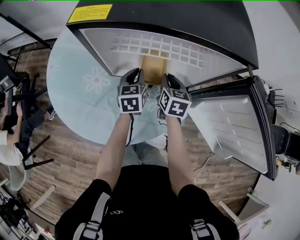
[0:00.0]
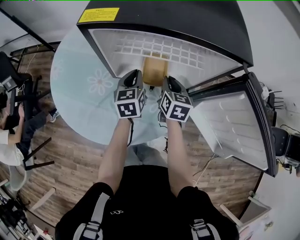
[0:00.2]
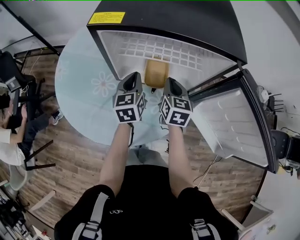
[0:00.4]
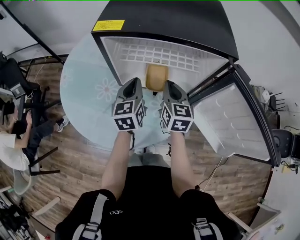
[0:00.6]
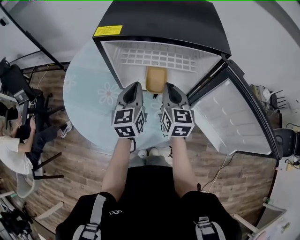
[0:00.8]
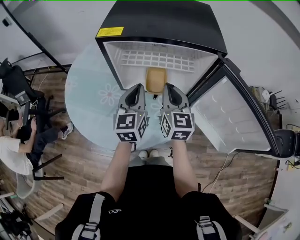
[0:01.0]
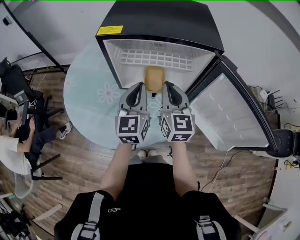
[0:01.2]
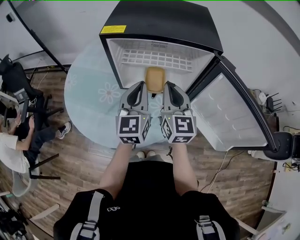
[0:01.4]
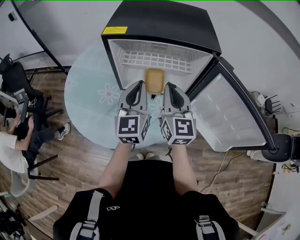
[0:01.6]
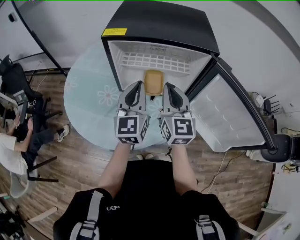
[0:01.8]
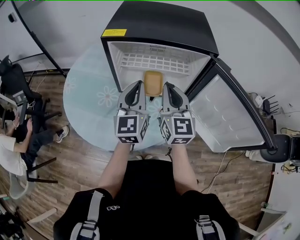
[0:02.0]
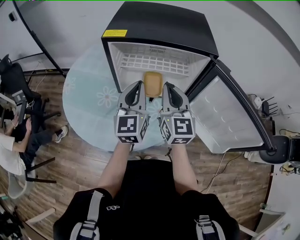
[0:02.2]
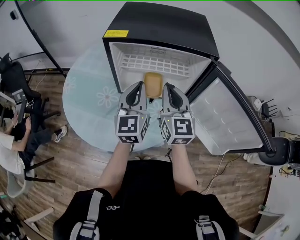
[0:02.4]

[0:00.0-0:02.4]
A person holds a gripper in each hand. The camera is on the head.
0:00.0 to 0:01.2: The grippers both shift upward and backward by about 25 cm. The left gripper turns by some 30 degrees. The right gripper tips its fingers upward by approximately 30 degrees.
0:01.2 to 0:02.4: The grippers move only a little.

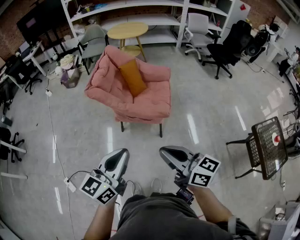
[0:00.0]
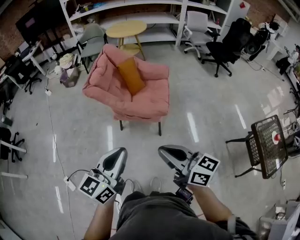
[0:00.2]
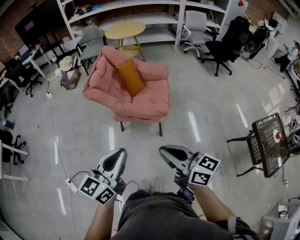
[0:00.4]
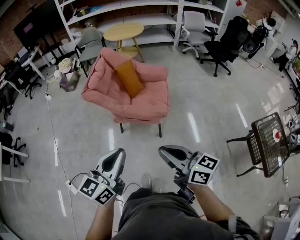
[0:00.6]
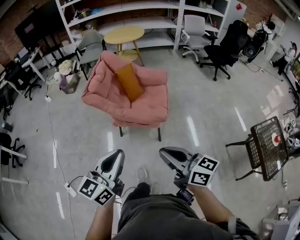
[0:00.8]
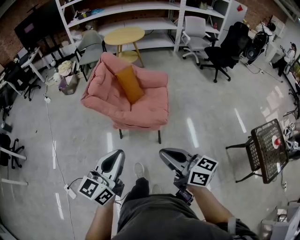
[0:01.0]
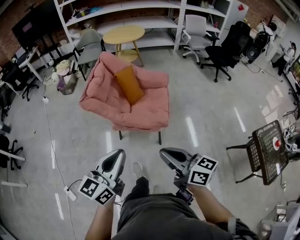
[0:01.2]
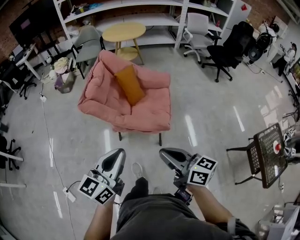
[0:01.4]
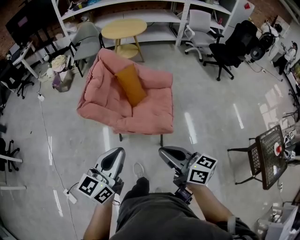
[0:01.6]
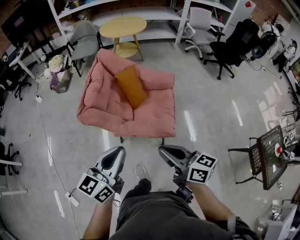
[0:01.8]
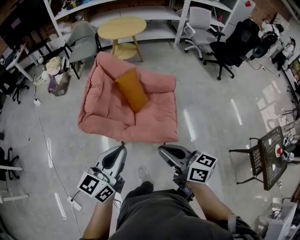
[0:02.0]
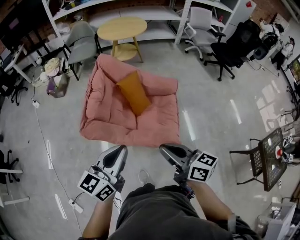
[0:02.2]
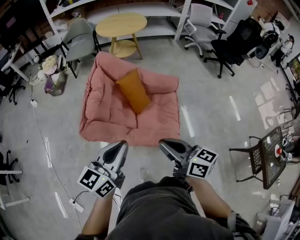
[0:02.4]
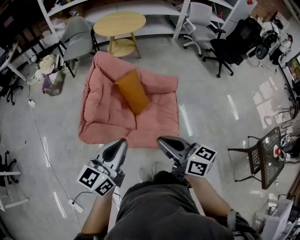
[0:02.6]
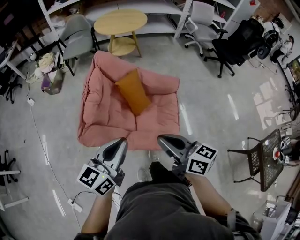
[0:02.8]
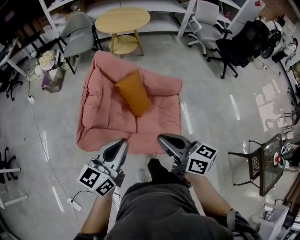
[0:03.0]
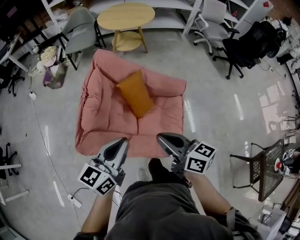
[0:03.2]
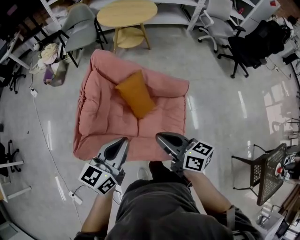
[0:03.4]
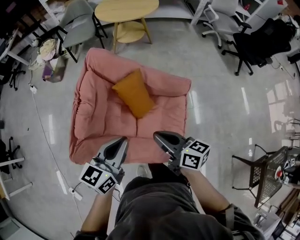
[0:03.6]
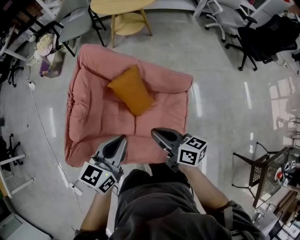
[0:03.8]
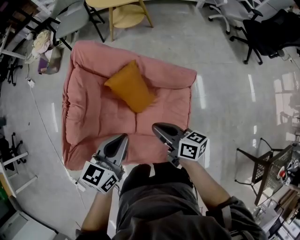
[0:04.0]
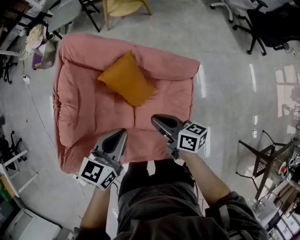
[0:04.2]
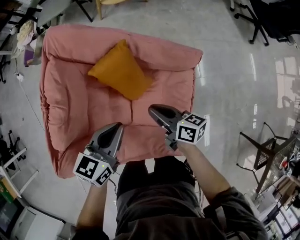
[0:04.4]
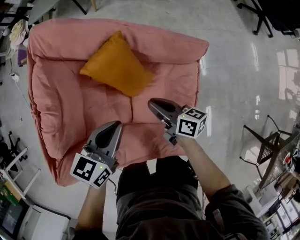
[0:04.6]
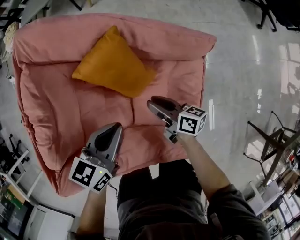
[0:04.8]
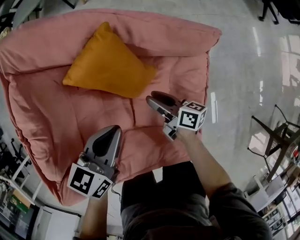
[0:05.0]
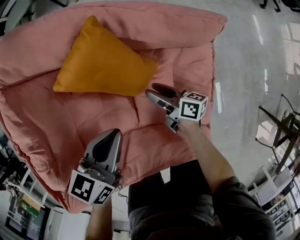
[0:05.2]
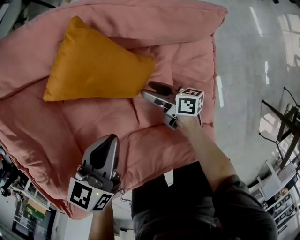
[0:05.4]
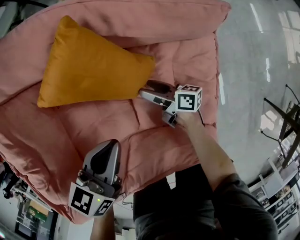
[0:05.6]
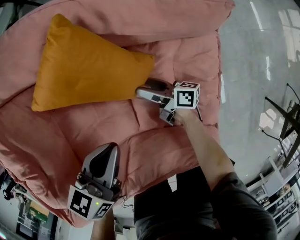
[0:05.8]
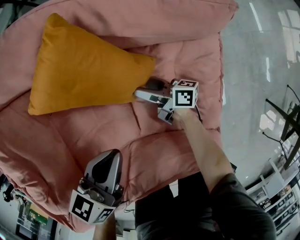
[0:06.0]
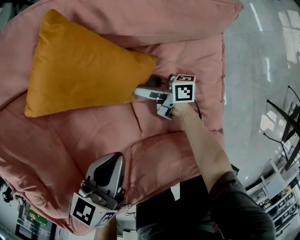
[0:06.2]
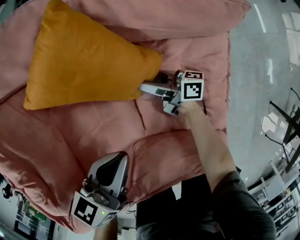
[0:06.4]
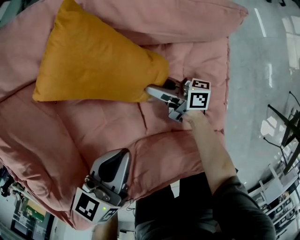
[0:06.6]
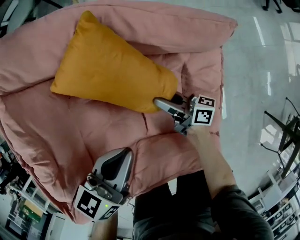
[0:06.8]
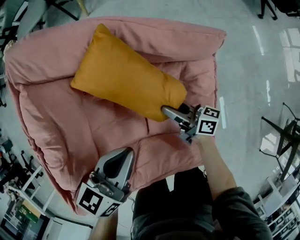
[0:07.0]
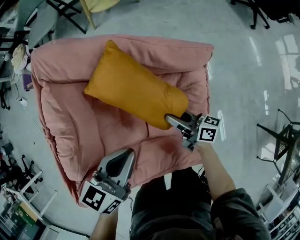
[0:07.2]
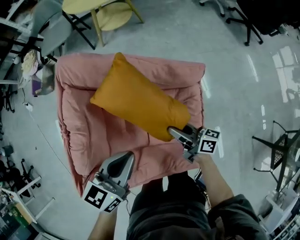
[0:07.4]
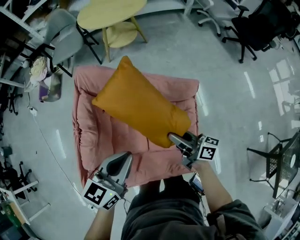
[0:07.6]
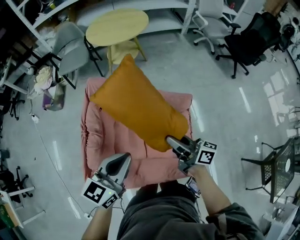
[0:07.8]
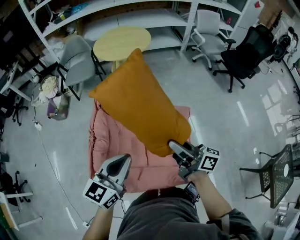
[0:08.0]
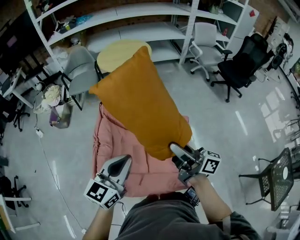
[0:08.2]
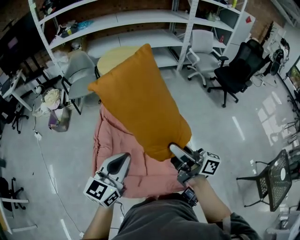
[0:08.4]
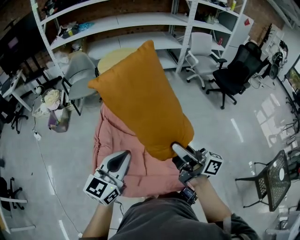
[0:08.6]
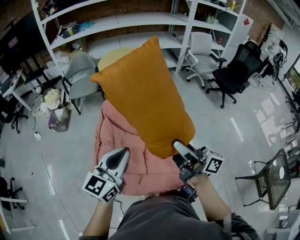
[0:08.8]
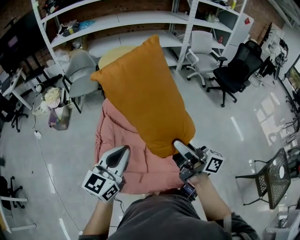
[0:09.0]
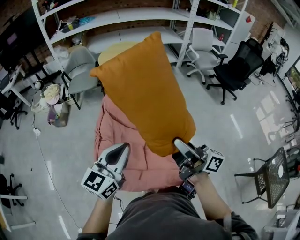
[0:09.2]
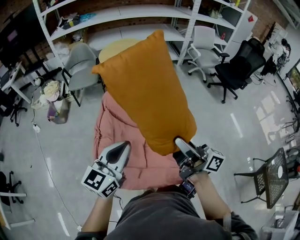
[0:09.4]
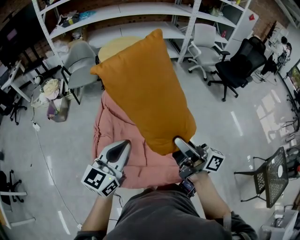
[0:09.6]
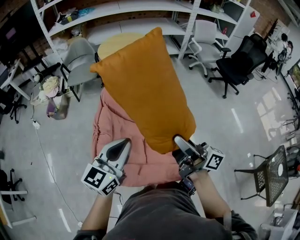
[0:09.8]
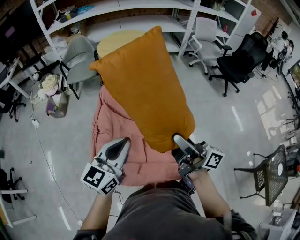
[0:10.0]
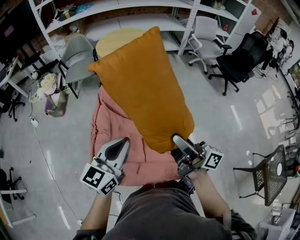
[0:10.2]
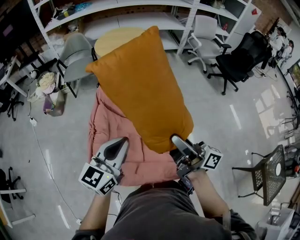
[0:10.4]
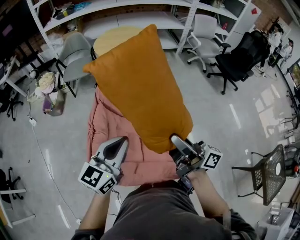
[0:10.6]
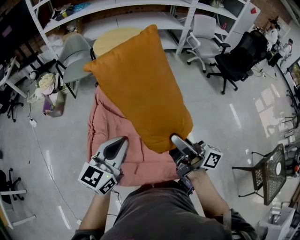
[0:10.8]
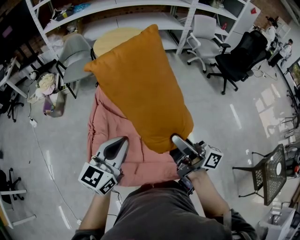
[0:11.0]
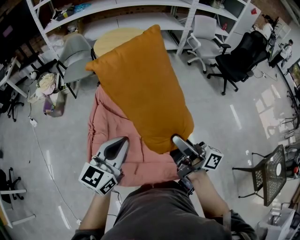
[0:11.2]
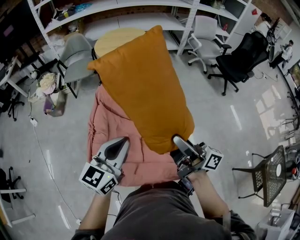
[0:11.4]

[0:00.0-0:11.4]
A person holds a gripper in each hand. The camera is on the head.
0:00.0 to 0:01.4: Both grippers travel together forward, some 15 cm.
0:01.4 to 0:02.8: Both grippers move forward, about 30 cm.
0:02.8 to 0:04.2: The left gripper goes some 30 cm forward, downward and to the right, and swivels some 20 degrees; the right gripper goes about 35 cm downward and forward, and rotates about 20 degrees.
0:04.2 to 0:05.6: The left gripper shifts approximately 20 cm downward, while the right gripper moves downward, about 35 cm, swivels about 20 degrees, and opens its fingers.
0:05.6 to 0:07.2: Both grippers move upward, some 15 cm. The right gripper closes up.
0:07.2 to 0:08.6: The left gripper is displaced upward by approximately 30 cm, and changes its angle by roughly 30 degrees. Meanwhile the right gripper moves upward, approximately 50 cm, and swivels approximately 30 degrees.
0:08.6 to 0:11.4: The grippers move only a little.

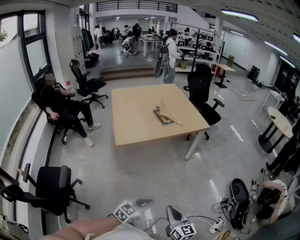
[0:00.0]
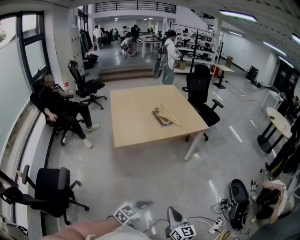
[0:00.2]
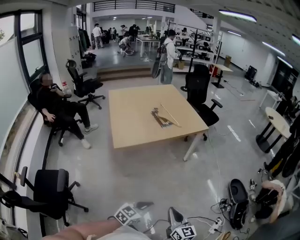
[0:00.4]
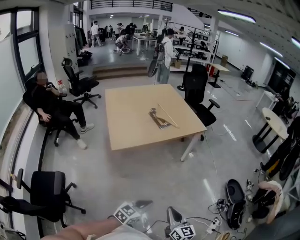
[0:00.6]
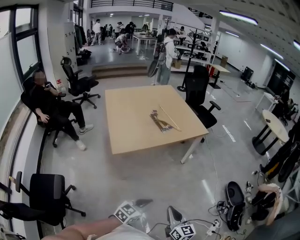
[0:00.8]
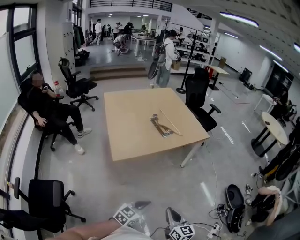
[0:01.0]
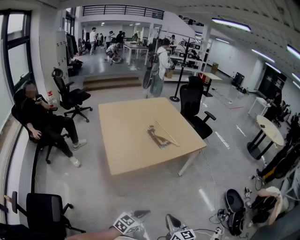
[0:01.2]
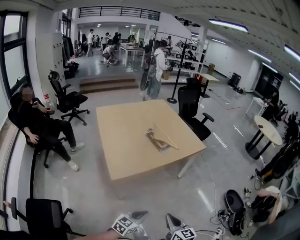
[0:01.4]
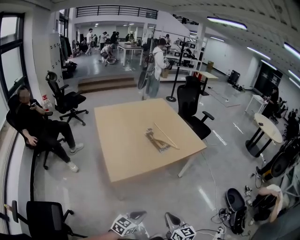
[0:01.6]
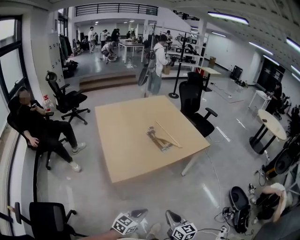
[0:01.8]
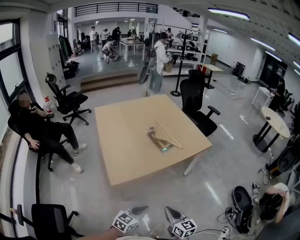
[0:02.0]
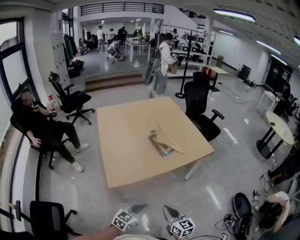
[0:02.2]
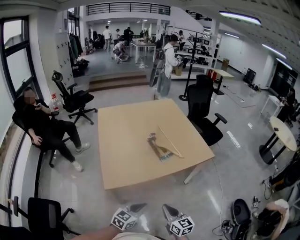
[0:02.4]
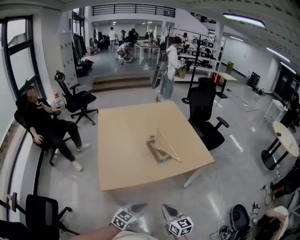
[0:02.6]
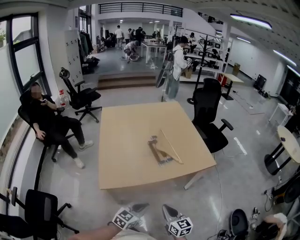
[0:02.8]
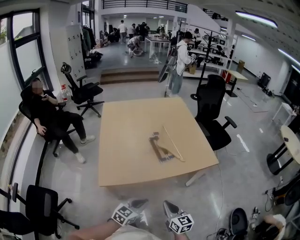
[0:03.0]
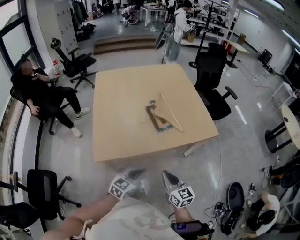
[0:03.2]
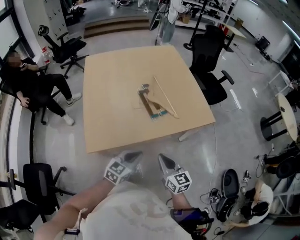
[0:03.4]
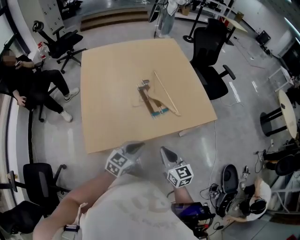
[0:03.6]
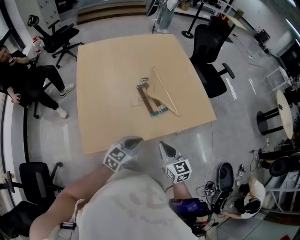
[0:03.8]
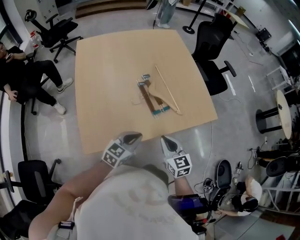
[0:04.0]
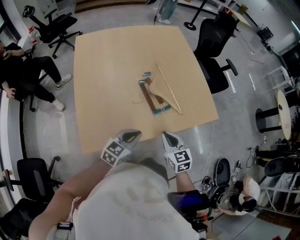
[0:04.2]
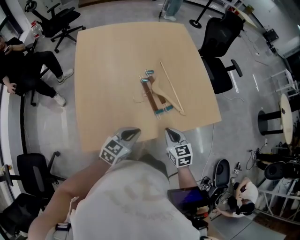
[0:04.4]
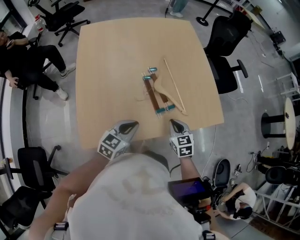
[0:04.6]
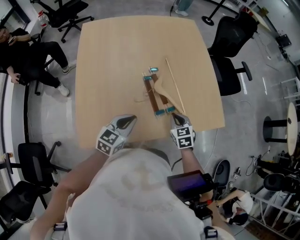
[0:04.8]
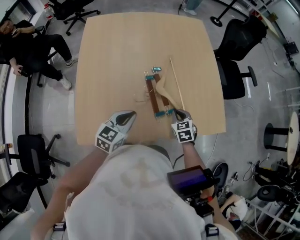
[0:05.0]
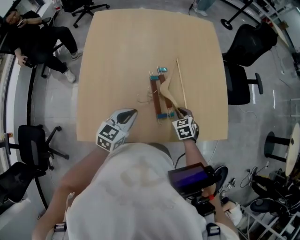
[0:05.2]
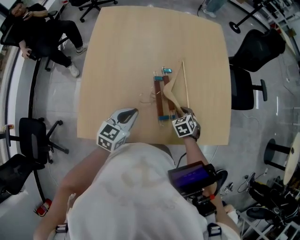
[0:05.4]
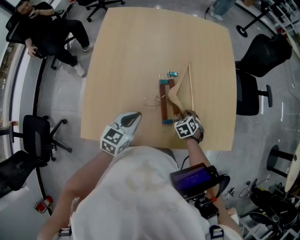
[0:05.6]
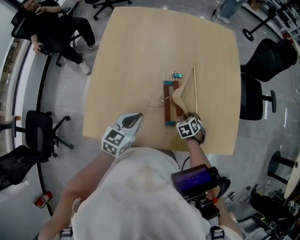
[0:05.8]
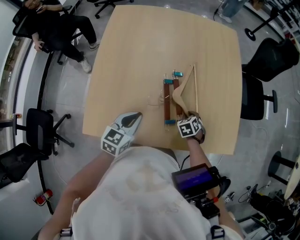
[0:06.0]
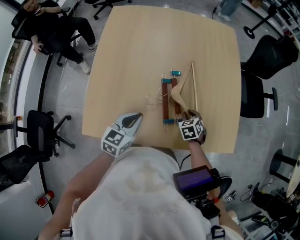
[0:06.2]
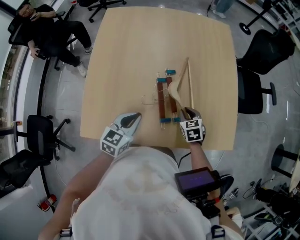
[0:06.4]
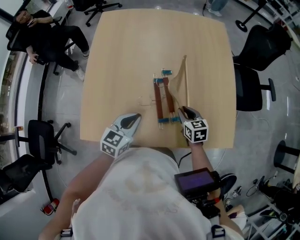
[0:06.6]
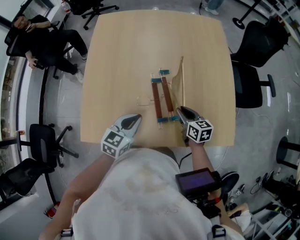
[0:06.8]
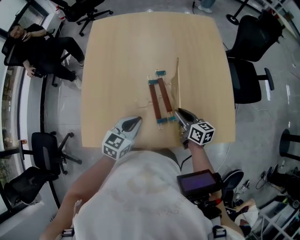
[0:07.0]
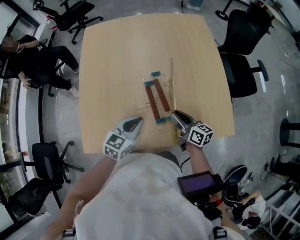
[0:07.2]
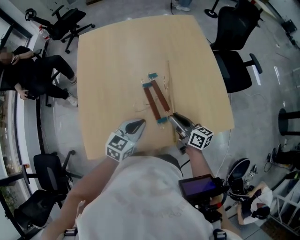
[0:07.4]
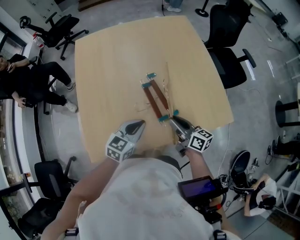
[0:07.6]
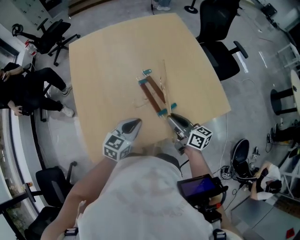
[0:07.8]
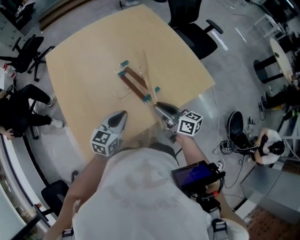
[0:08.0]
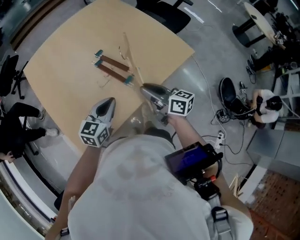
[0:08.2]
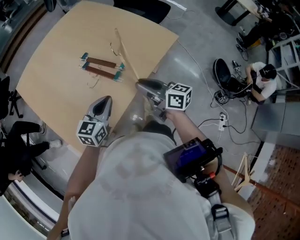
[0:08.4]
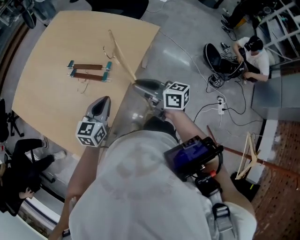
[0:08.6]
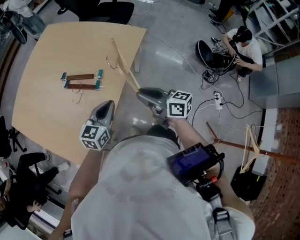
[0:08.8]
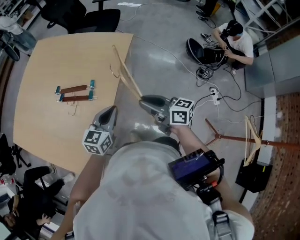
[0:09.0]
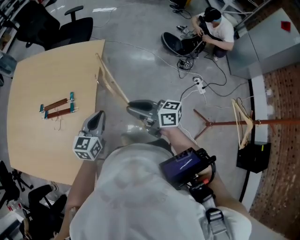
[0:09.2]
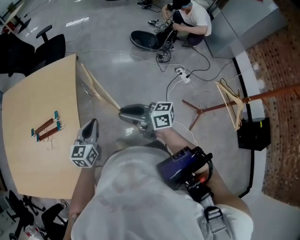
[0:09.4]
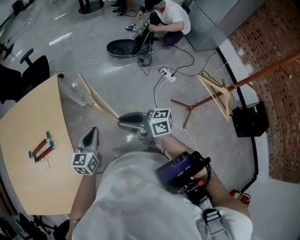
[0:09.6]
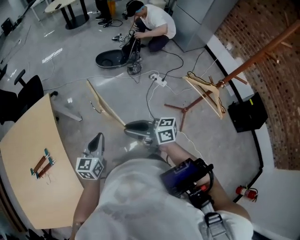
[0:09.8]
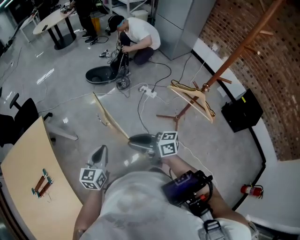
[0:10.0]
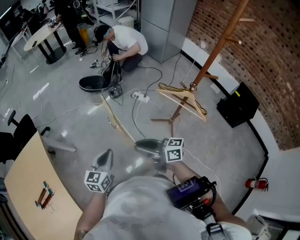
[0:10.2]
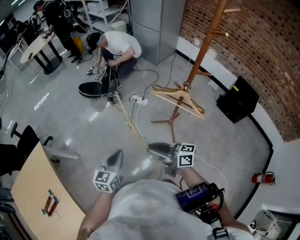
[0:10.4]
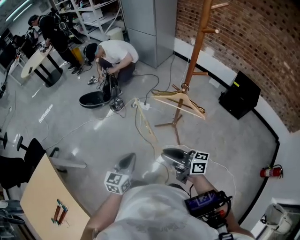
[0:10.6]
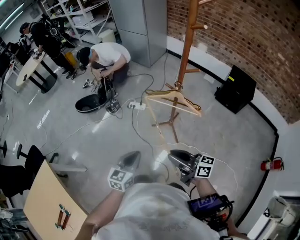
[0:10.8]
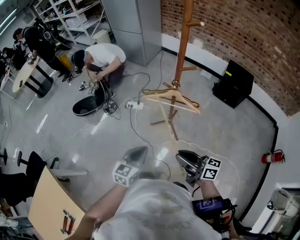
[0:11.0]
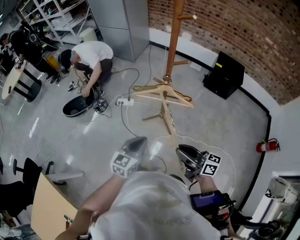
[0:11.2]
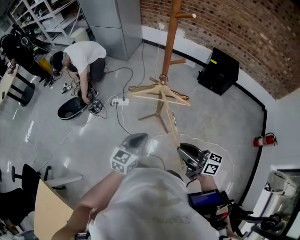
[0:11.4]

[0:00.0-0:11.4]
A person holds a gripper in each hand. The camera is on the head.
0:00.0 to 0:01.4: The left gripper travels to the left and forward by about 20 cm, while the right gripper heads forward and to the left, covering about 20 cm.
0:01.4 to 0:02.8: Both grippers move forward, about 25 cm.
0:02.8 to 0:04.2: The grippers both shift forward by approximately 25 cm. The right gripper changes its angle by about 20 degrees.
0:04.2 to 0:05.6: The right gripper shifts about 30 cm forward and downward, tips its fingers downward by roughly 40 degrees, and opens up. The left gripper goes some 15 cm forward, and swivels about 30 degrees.
0:05.6 to 0:07.2: The right gripper is displaced upward by roughly 15 cm, and tips its fingers upward by approximately 50 degrees; the left gripper shifts some 5 cm to the right.
0:07.2 to 0:08.6: The left gripper moves about 15 cm, and turns by roughly 40 degrees, while the right gripper shifts by approximately 25 cm, and changes its angle by roughly 40 degrees.
0:08.6 to 0:10.0: The two grippers travel together, approximately 50 cm. The right gripper swivels about 40 degrees; the left gripper changes its angle by roughly 50 degrees.
0:10.0 to 0:11.4: The left gripper changes place by approximately 35 cm, and rotates roughly 50 degrees, while the right gripper ends up about 30 cm from where it was, and rotates roughly 50 degrees.
